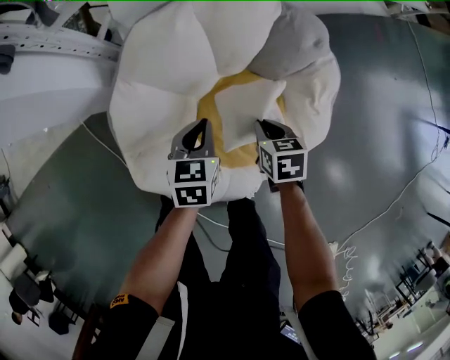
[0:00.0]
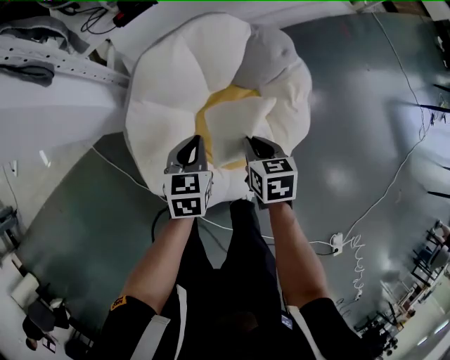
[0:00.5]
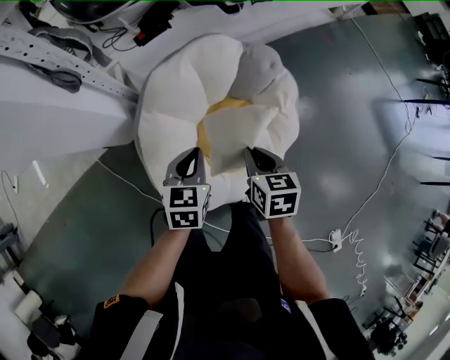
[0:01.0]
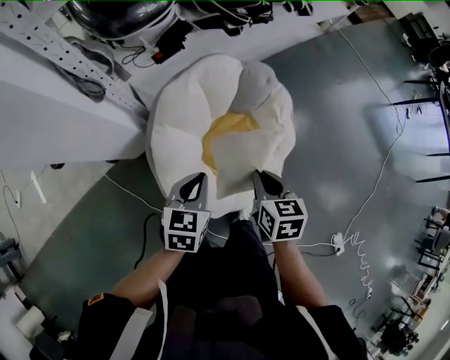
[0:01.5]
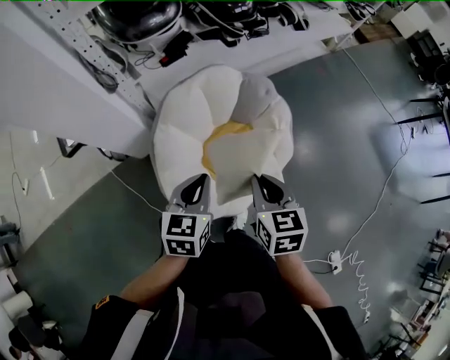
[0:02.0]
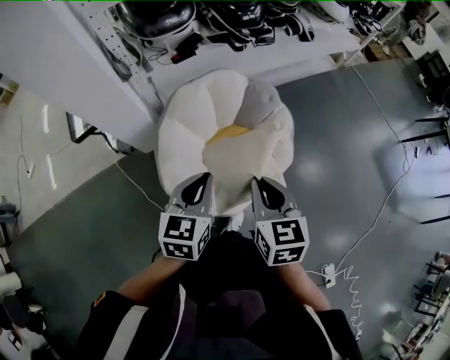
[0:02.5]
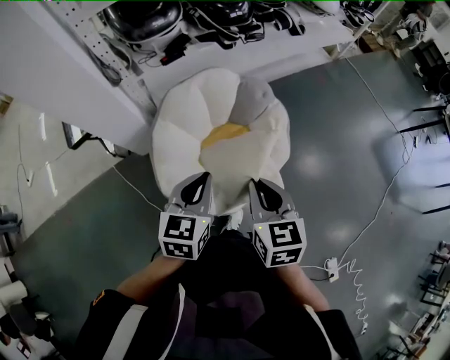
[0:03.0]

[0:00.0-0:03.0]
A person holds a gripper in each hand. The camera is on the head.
0:00.0 to 0:01.5: The grippers both shift upward by approximately 30 cm. The right gripper changes its angle by some 20 degrees. The left gripper rotates approximately 20 degrees.
0:01.5 to 0:03.0: The right gripper heads upward, backward and to the right, covering about 20 cm, while the left gripper travels upward, to the right and backward by about 20 cm.

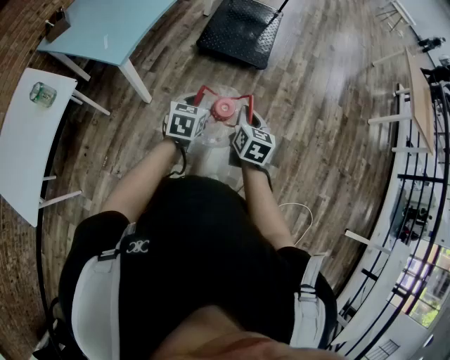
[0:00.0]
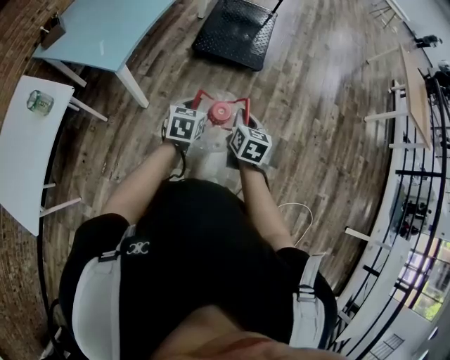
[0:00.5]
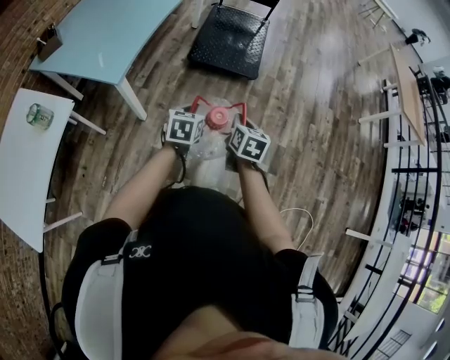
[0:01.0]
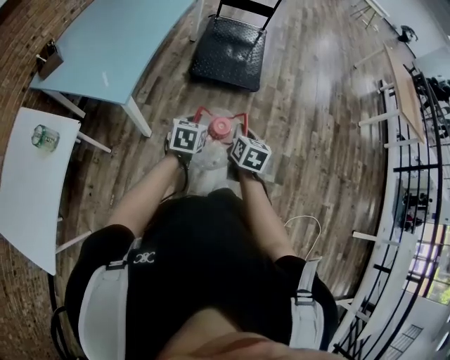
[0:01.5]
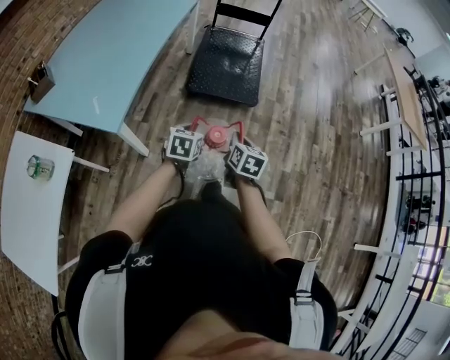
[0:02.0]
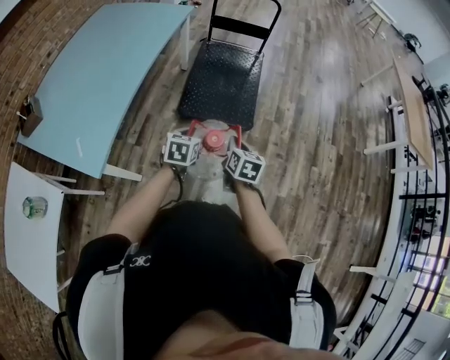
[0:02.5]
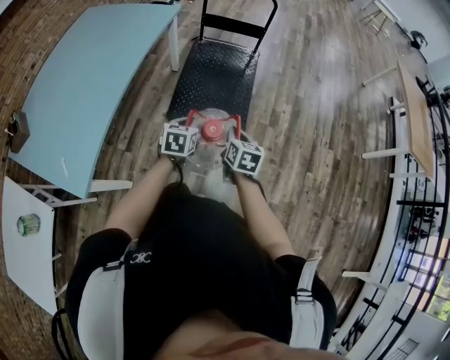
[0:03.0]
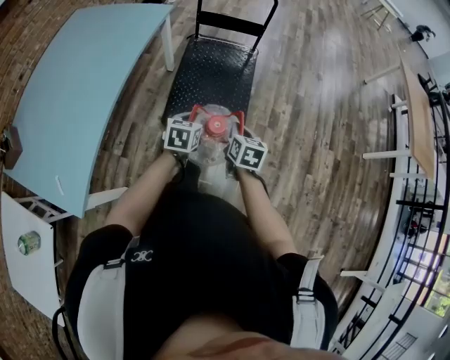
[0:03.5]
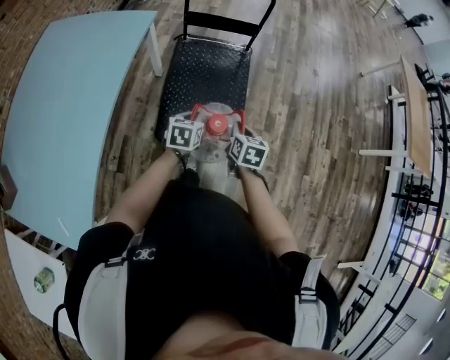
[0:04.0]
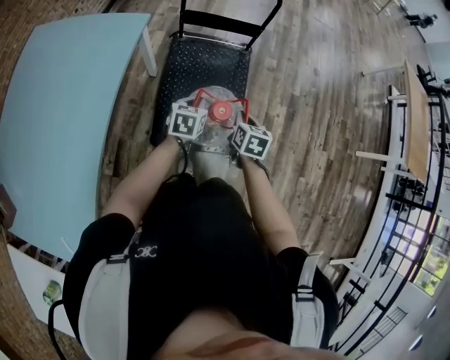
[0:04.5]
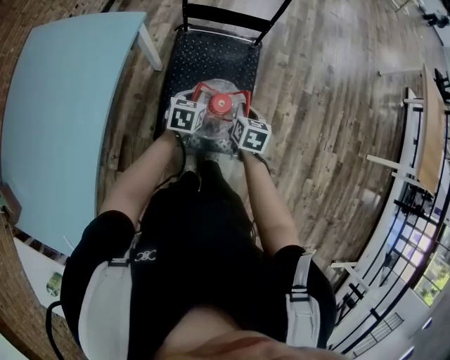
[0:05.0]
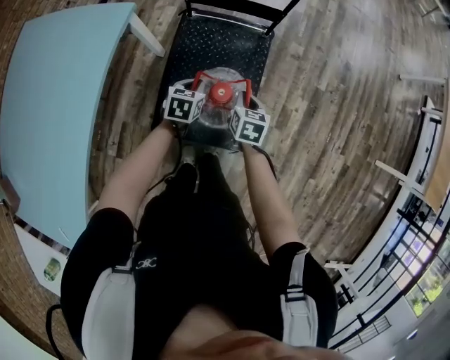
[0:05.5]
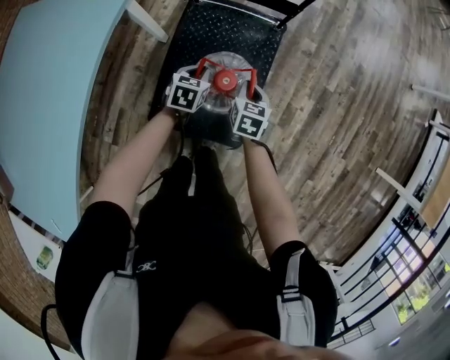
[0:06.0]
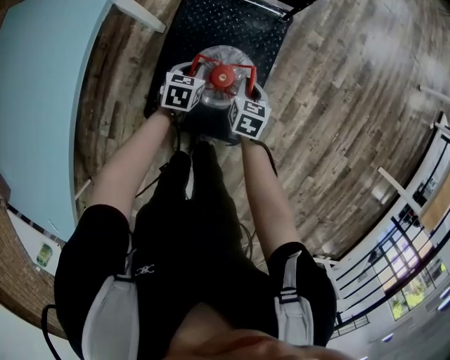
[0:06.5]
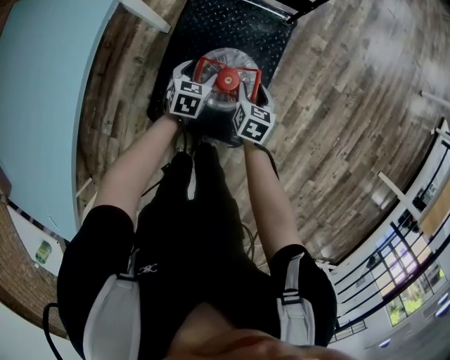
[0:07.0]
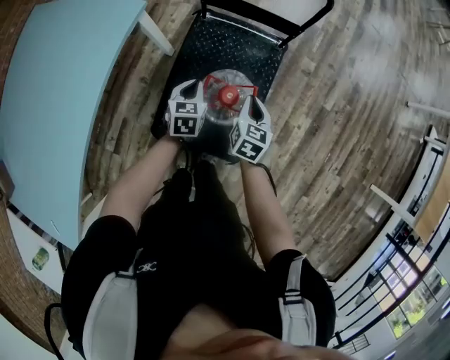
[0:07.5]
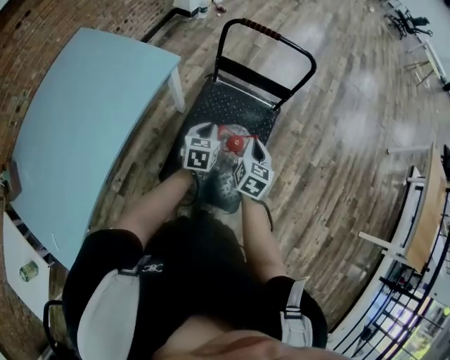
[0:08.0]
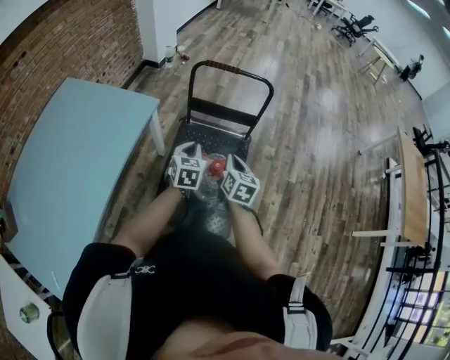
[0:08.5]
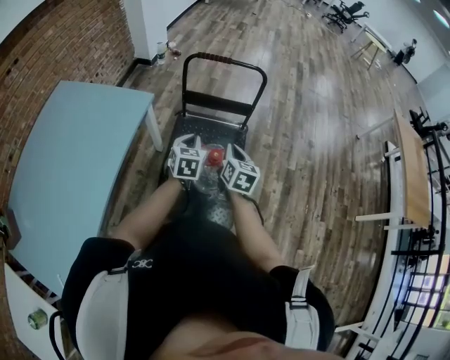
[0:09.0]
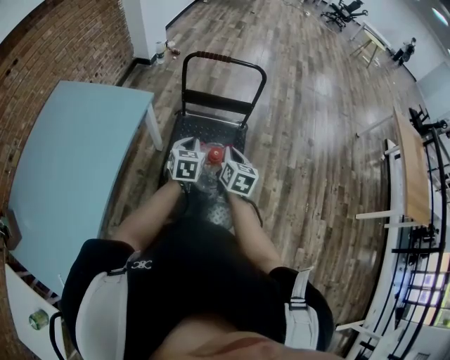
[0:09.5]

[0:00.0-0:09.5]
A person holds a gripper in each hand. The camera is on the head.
0:00.0 to 0:02.0: The two grippers go roughly 15 cm forward and to the left.
0:02.0 to 0:04.0: Both grippers are carried forward, about 50 cm.
0:04.0 to 0:05.5: The two grippers go approximately 25 cm forward and downward.
0:05.5 to 0:07.5: The left gripper travels downward and back again, some 10 cm each way, and opens and closes again; the right gripper shifts roughly 5 cm forward, moves some 10 cm downward and comes back, and opens, then closes again.
0:07.5 to 0:09.5: The right gripper is displaced upward and backward by about 20 cm. The left gripper heads upward, covering about 20 cm.

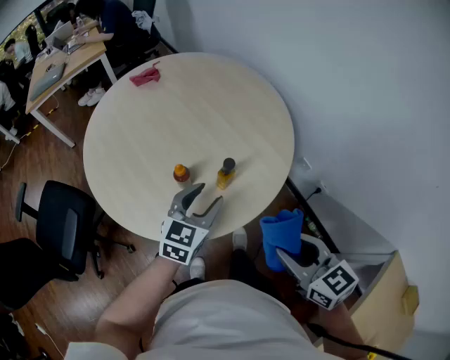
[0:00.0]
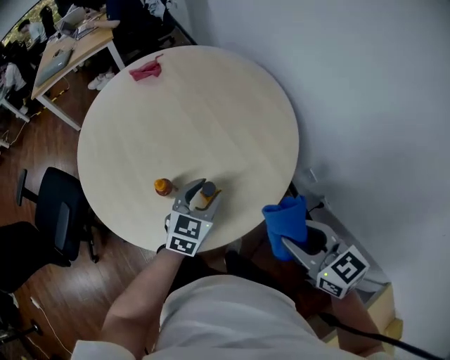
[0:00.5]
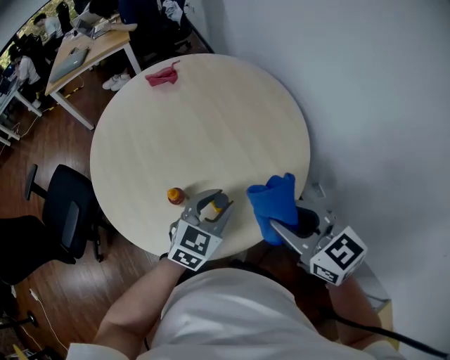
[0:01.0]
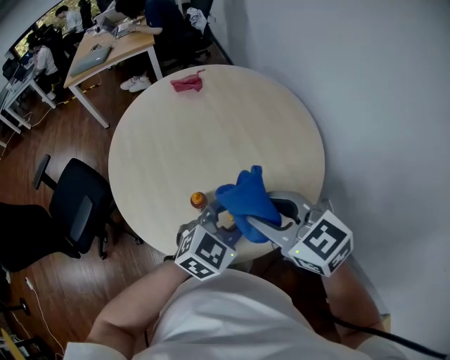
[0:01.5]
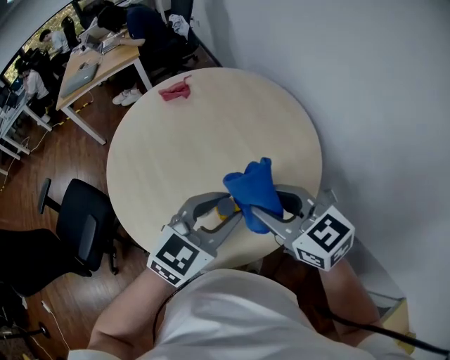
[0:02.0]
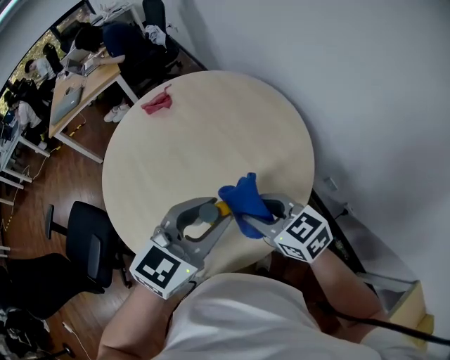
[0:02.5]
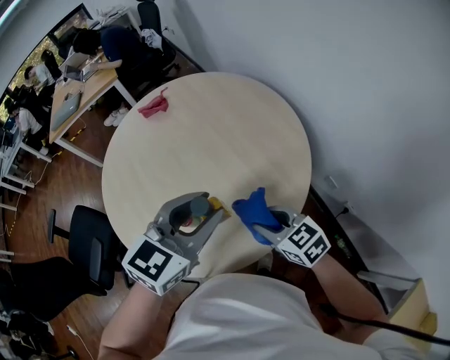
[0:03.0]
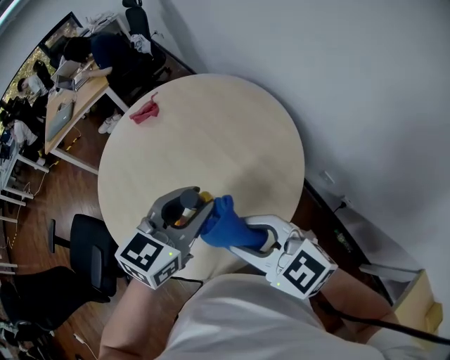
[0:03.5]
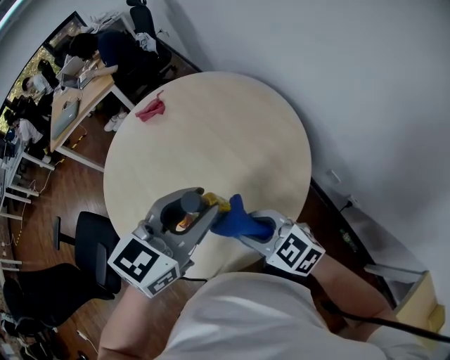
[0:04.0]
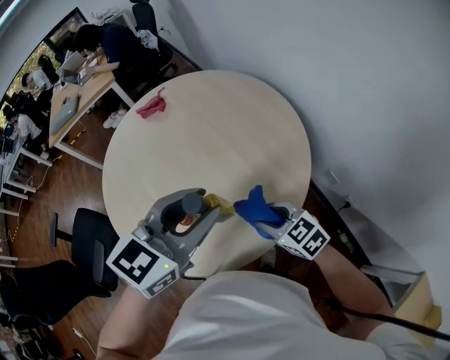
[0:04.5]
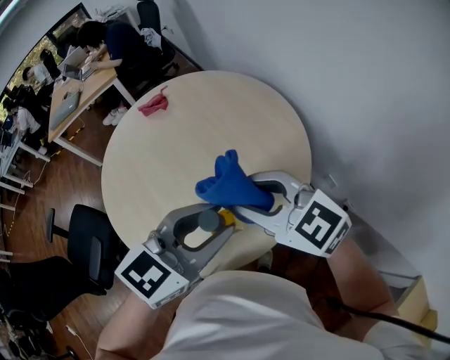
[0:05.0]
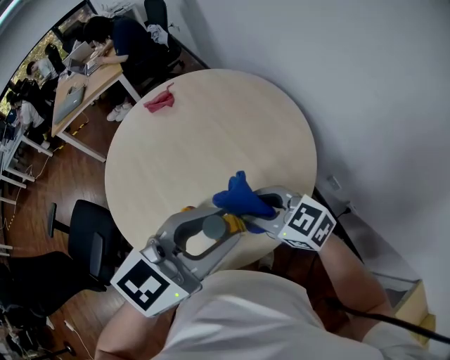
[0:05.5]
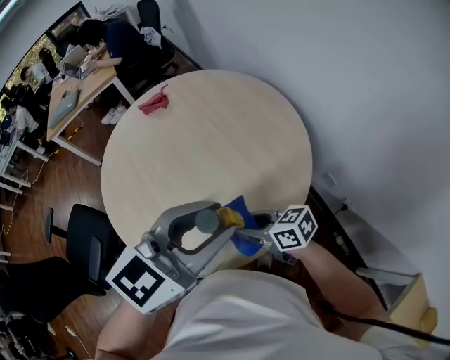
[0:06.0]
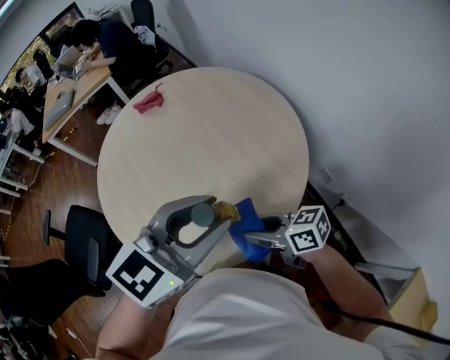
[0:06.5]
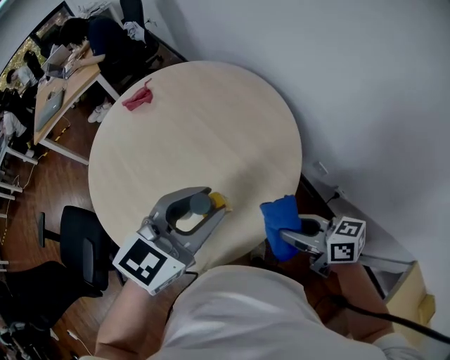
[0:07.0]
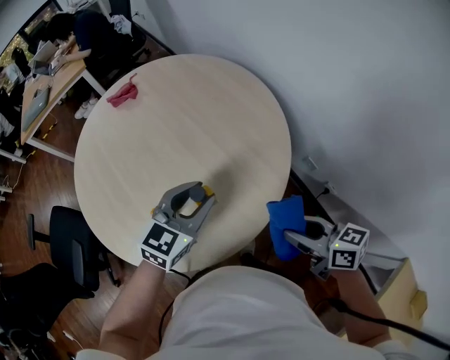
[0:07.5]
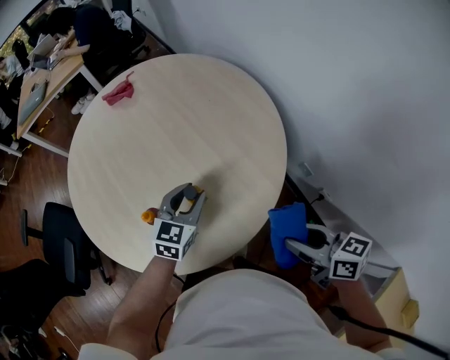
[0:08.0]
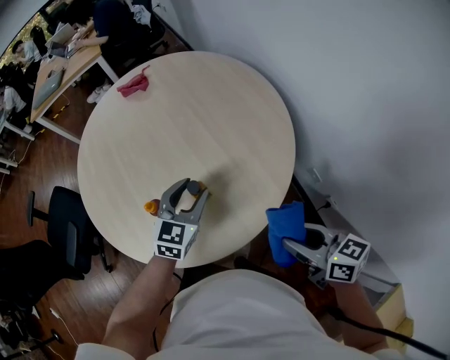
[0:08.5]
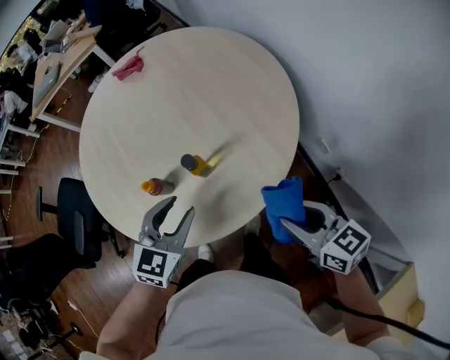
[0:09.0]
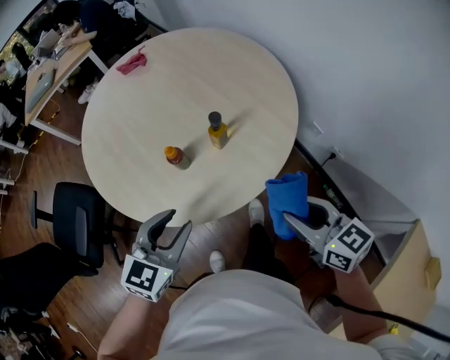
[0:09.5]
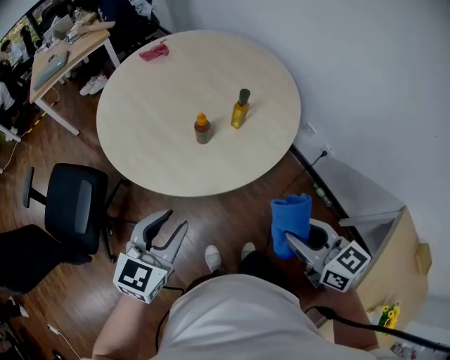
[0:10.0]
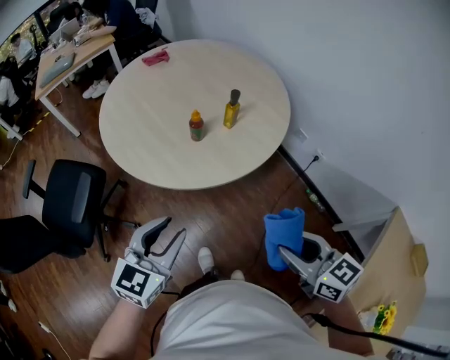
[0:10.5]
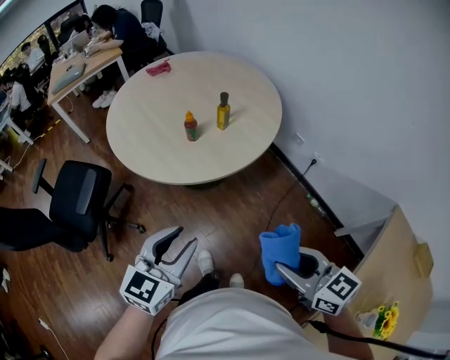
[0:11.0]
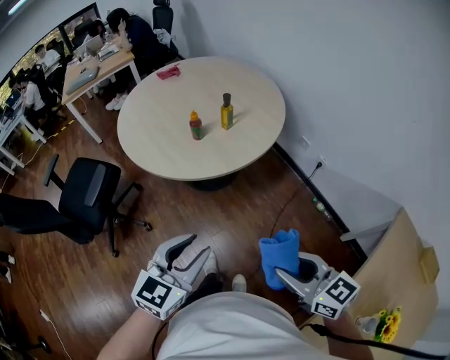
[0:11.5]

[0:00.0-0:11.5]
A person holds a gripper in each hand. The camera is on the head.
0:00.0 to 0:02.0: The right gripper moves forward, some 25 cm, and swivels roughly 20 degrees. The left gripper goes roughly 15 cm upward and forward.
0:02.0 to 0:04.0: The left gripper shifts approximately 5 cm upward; the right gripper swings up and down, roughly 15 cm each way, with 2 reversals.
0:04.0 to 0:06.0: The right gripper goes up and down, about 20 cm each way, reversing 2 times, and turns by about 40 degrees. Meanwhile the left gripper changes place by approximately 5 cm.
0:06.0 to 0:07.5: The left gripper shifts some 20 cm downward and forward. Meanwhile the right gripper shifts roughly 15 cm to the right, and turns by some 20 degrees.
0:07.5 to 0:09.5: The left gripper moves backward and to the left, some 25 cm. The right gripper shifts roughly 15 cm backward and to the left.
0:09.5 to 0:11.5: The grippers both shift backward by approximately 35 cm.

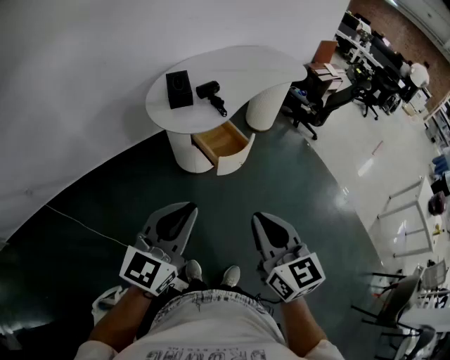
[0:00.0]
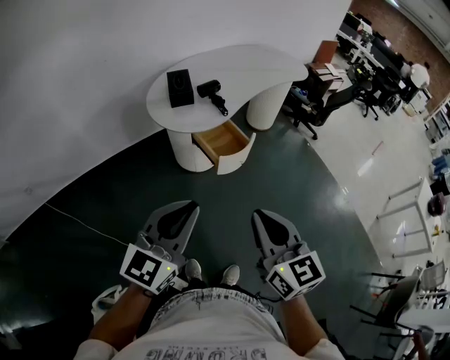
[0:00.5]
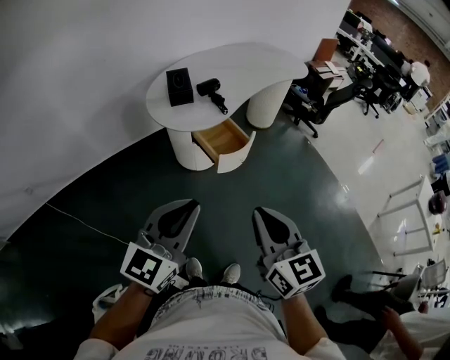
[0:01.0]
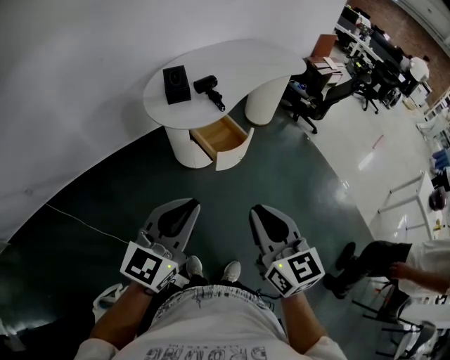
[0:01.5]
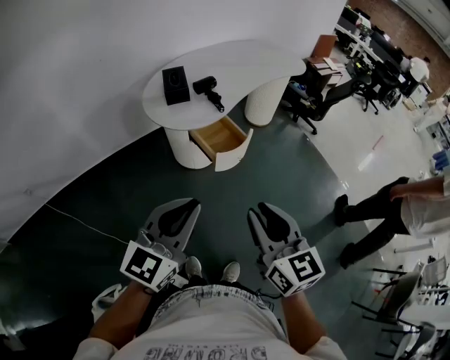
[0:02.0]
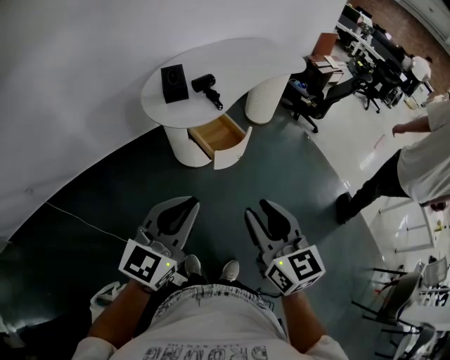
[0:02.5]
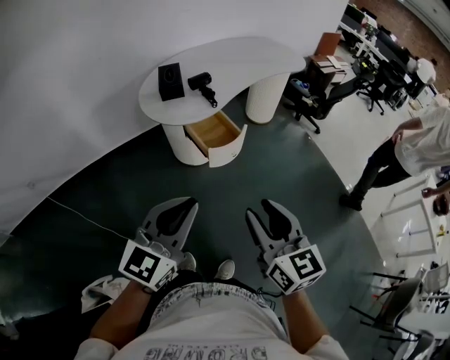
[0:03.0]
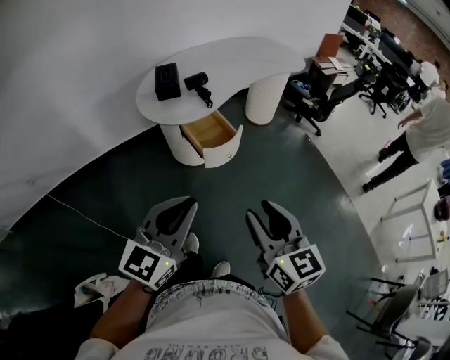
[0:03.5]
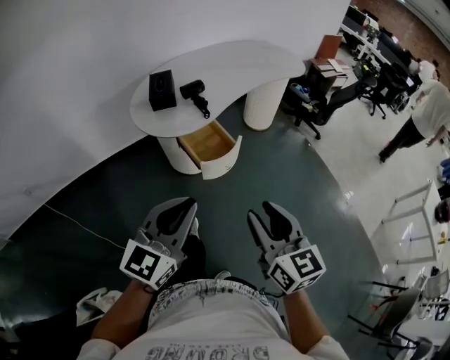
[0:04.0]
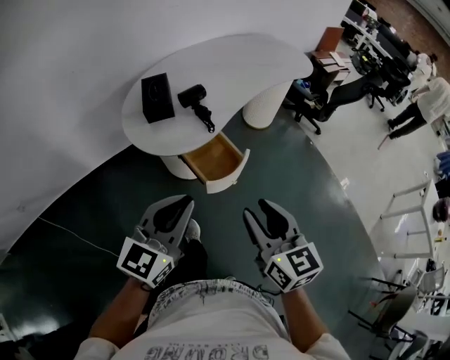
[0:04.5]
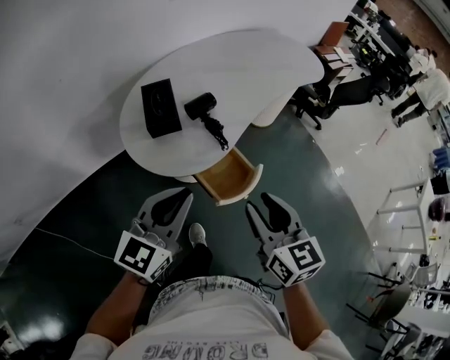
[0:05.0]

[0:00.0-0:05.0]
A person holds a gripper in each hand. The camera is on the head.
0:00.0 to 0:02.5: The right gripper opens.
0:02.5 to 0:05.0: The grippers both shift forward by roughly 35 cm.
